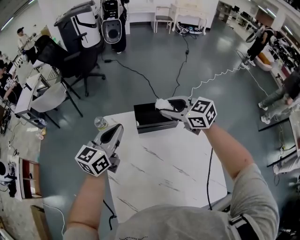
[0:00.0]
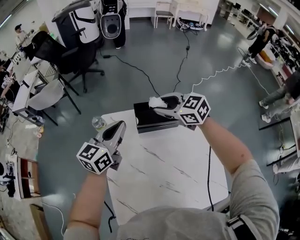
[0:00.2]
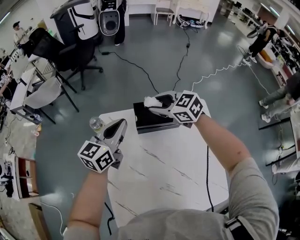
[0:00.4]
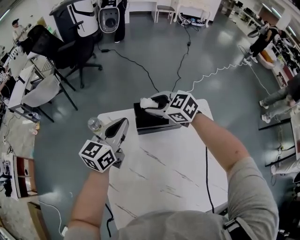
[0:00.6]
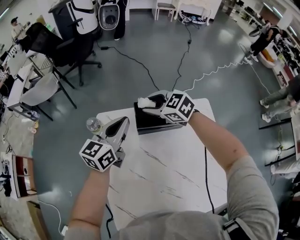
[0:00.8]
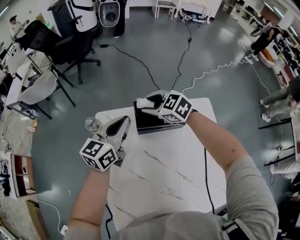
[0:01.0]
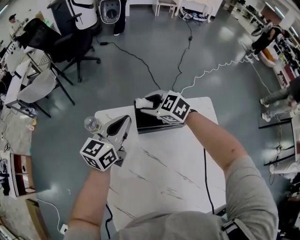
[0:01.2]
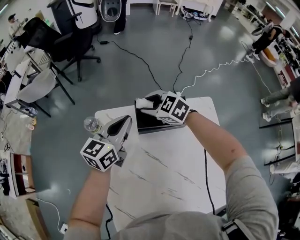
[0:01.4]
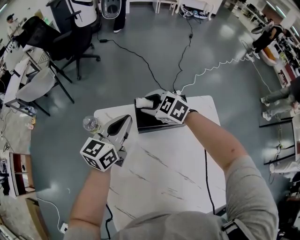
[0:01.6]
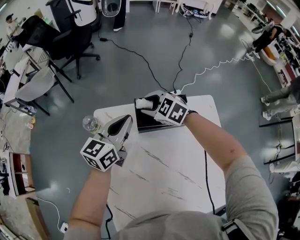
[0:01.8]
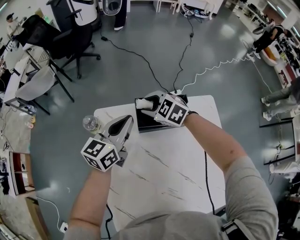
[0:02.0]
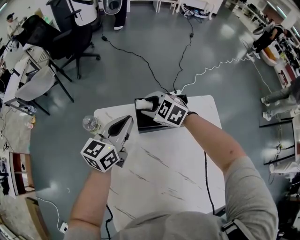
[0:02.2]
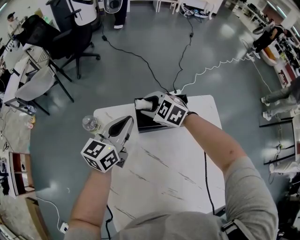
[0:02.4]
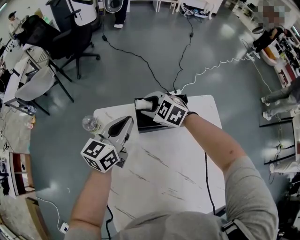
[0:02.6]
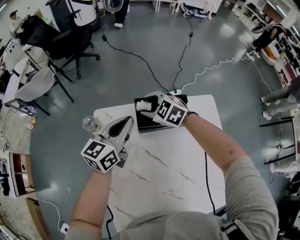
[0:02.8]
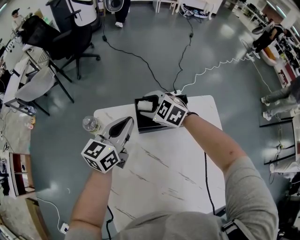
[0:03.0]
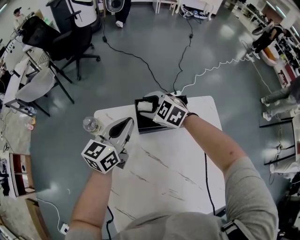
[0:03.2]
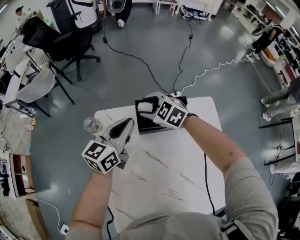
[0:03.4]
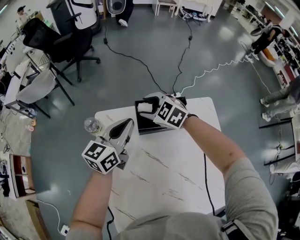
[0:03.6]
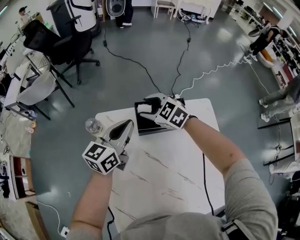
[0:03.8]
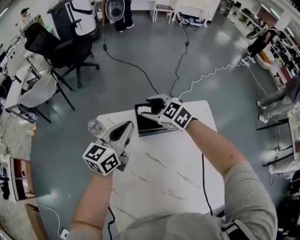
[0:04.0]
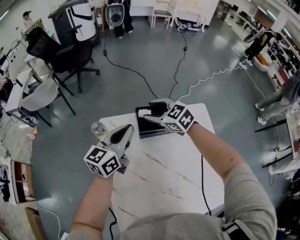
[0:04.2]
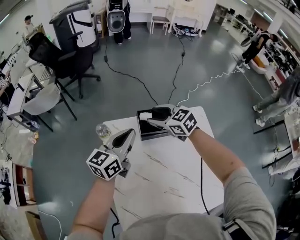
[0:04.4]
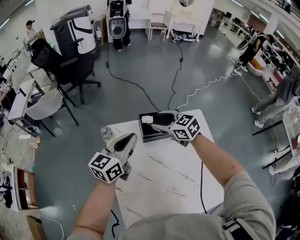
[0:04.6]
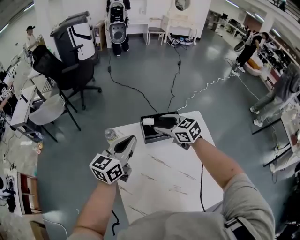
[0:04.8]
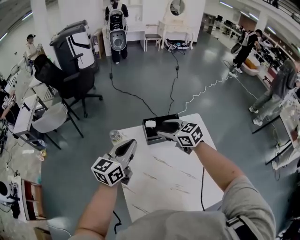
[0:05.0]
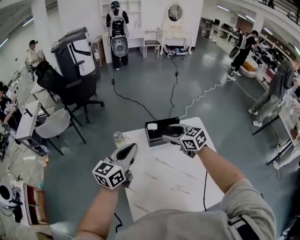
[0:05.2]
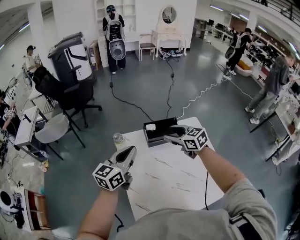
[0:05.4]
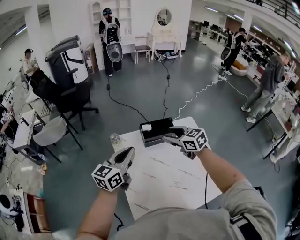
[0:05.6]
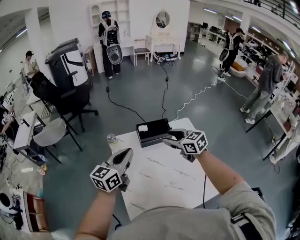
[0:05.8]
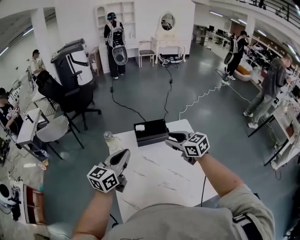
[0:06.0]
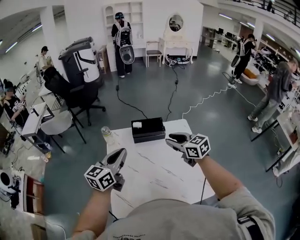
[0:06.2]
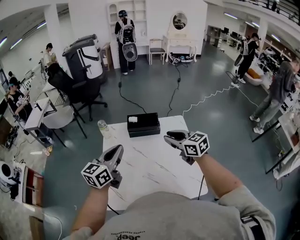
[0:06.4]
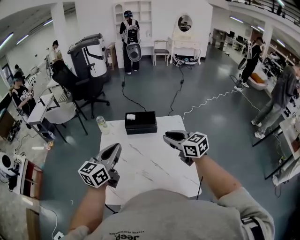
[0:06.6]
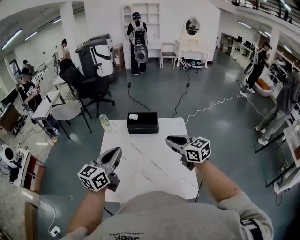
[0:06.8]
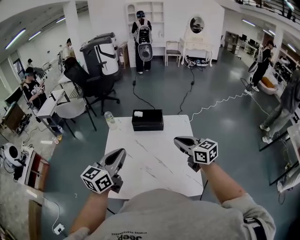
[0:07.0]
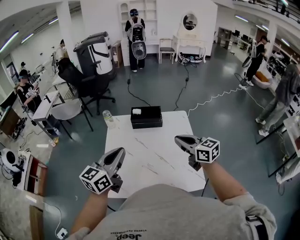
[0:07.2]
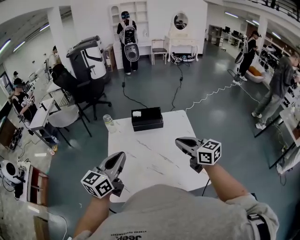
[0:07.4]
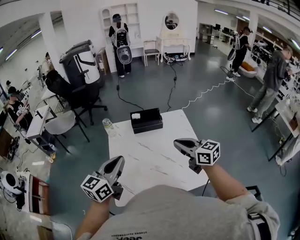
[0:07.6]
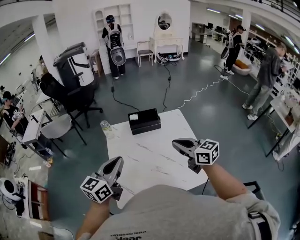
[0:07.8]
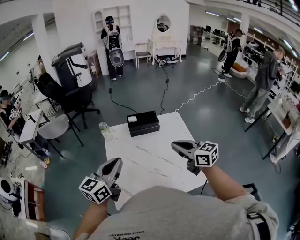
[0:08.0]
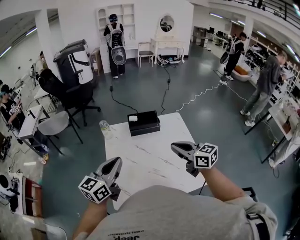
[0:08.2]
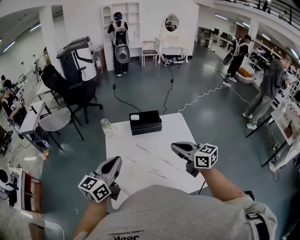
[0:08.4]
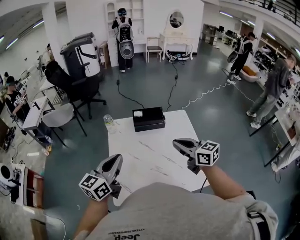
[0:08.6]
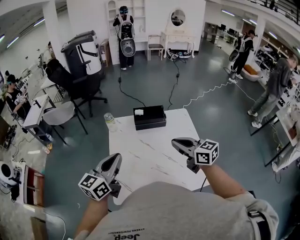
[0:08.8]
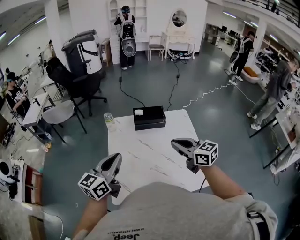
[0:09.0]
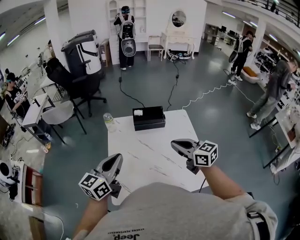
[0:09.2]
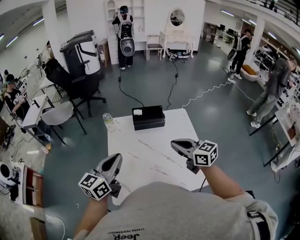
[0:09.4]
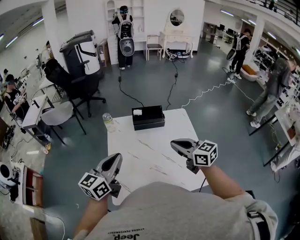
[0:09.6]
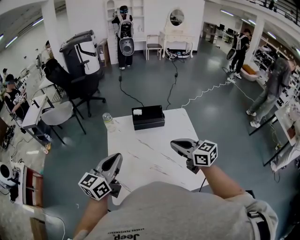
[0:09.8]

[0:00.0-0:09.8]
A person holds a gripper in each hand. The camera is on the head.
0:00.0 to 0:01.4: The right gripper shifts some 20 cm downward, forward and to the left, and swivels about 20 degrees; the left gripper goes about 10 cm downward and forward.
0:01.4 to 0:02.8: The grippers stay close to where they were, moving slightly.
0:02.8 to 0:04.2: The right gripper moves upward, roughly 10 cm. Meanwhile the left gripper ends up some 5 cm from where it was.
0:04.2 to 0:05.6: The left gripper shifts approximately 15 cm backward, upward and to the left; the right gripper moves backward and upward, roughly 15 cm, and rotates some 20 degrees.
0:05.6 to 0:07.0: The grippers both shift backward and to the right by some 25 cm. The right gripper closes its fingers.
0:07.0 to 0:08.4: The two grippers go about 10 cm to the left.
0:08.4 to 0:09.8: There are only small adjustments of the grippers.

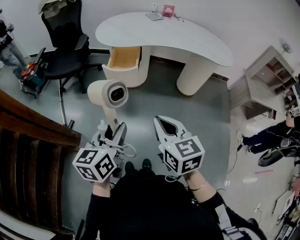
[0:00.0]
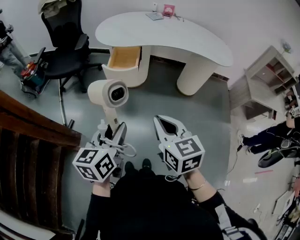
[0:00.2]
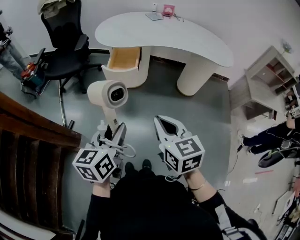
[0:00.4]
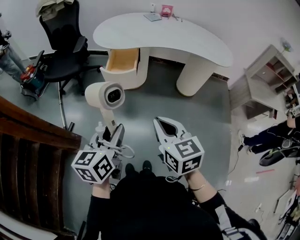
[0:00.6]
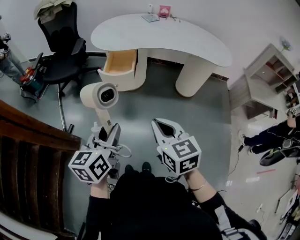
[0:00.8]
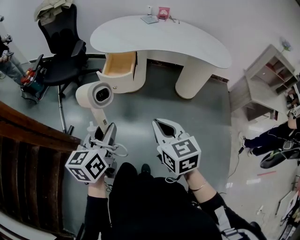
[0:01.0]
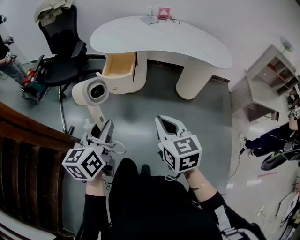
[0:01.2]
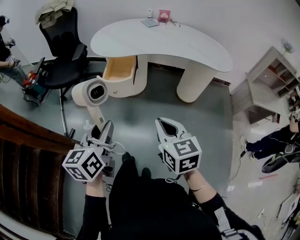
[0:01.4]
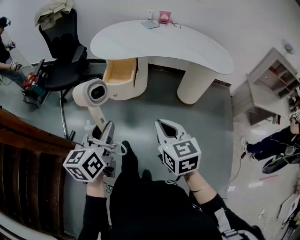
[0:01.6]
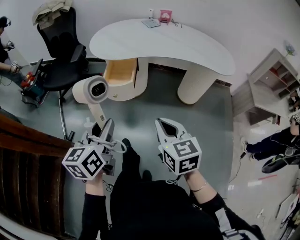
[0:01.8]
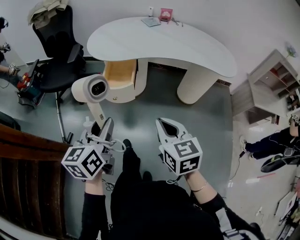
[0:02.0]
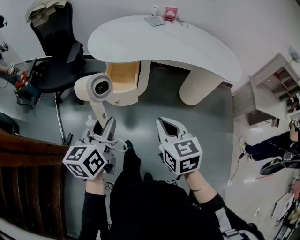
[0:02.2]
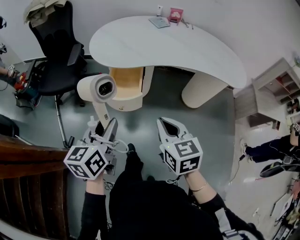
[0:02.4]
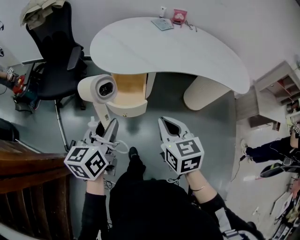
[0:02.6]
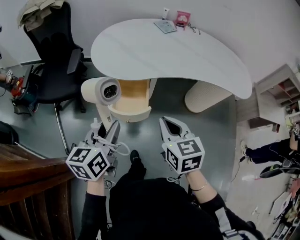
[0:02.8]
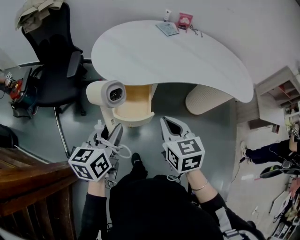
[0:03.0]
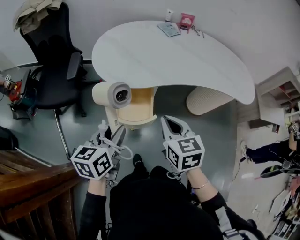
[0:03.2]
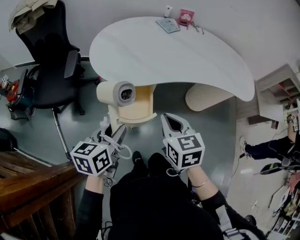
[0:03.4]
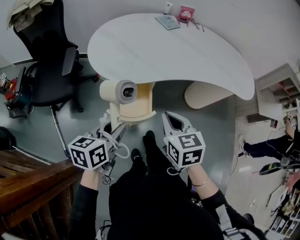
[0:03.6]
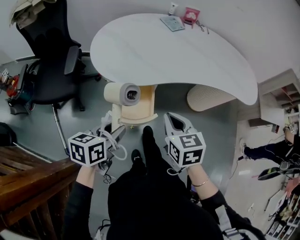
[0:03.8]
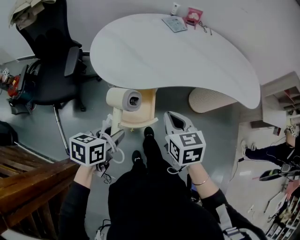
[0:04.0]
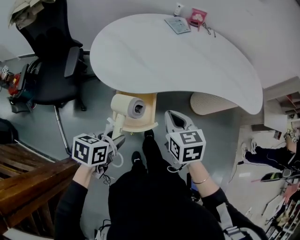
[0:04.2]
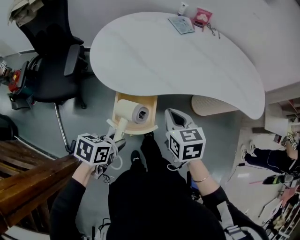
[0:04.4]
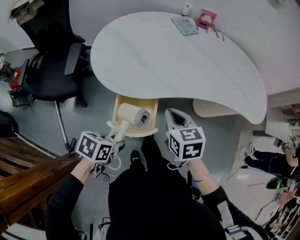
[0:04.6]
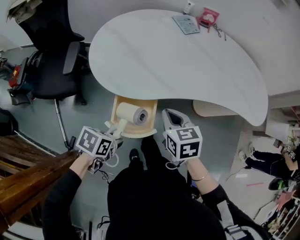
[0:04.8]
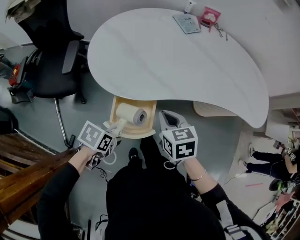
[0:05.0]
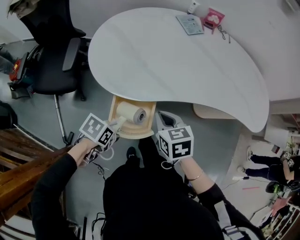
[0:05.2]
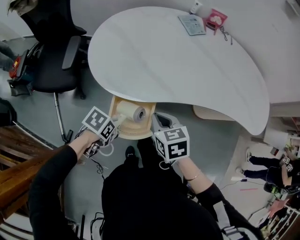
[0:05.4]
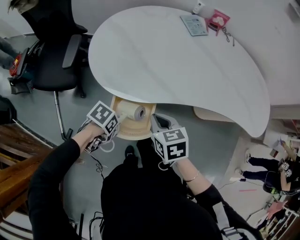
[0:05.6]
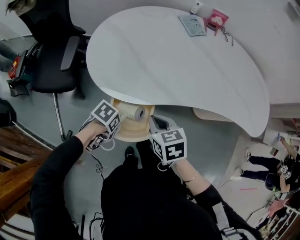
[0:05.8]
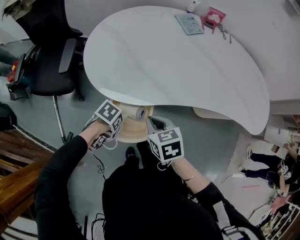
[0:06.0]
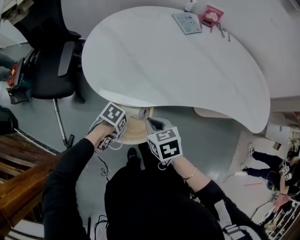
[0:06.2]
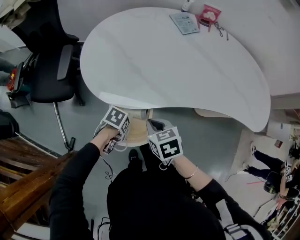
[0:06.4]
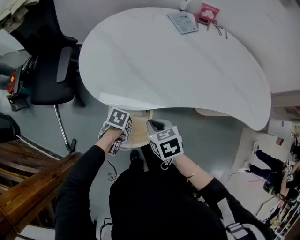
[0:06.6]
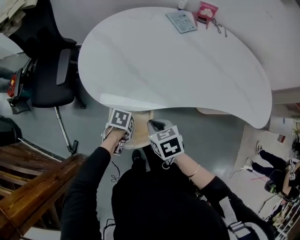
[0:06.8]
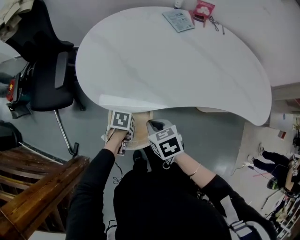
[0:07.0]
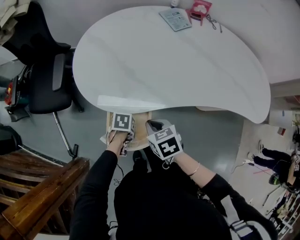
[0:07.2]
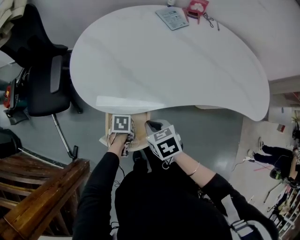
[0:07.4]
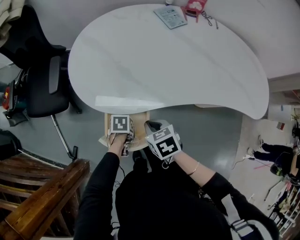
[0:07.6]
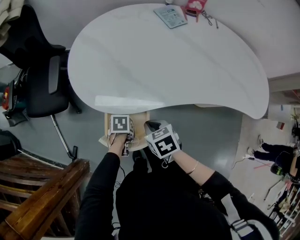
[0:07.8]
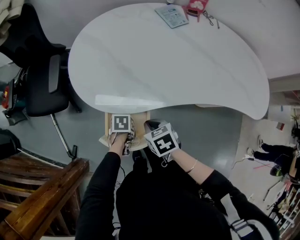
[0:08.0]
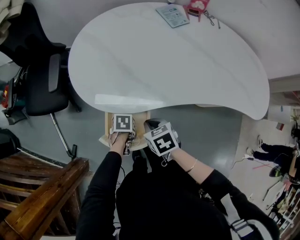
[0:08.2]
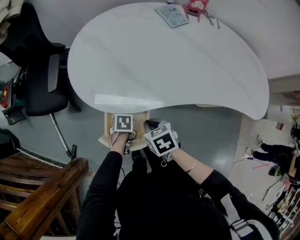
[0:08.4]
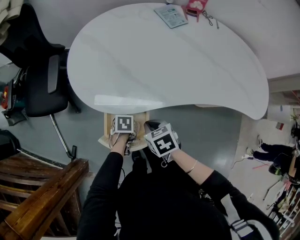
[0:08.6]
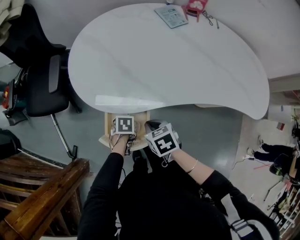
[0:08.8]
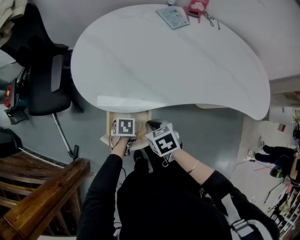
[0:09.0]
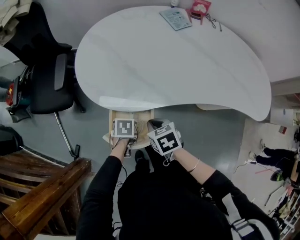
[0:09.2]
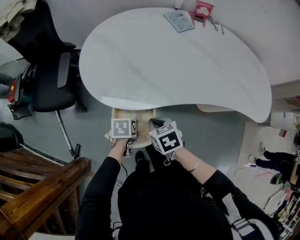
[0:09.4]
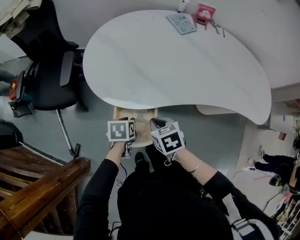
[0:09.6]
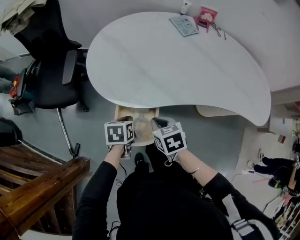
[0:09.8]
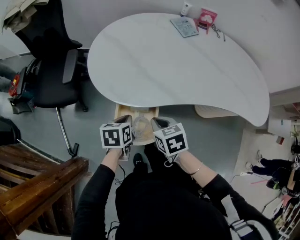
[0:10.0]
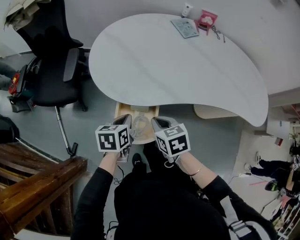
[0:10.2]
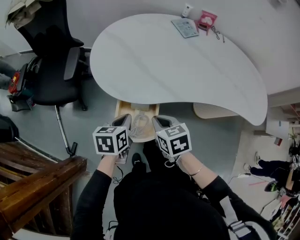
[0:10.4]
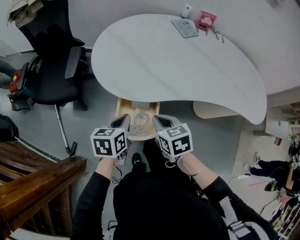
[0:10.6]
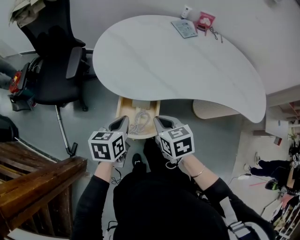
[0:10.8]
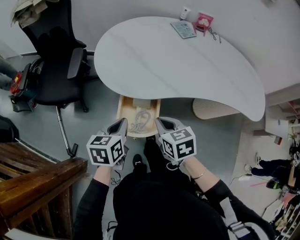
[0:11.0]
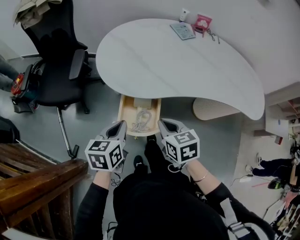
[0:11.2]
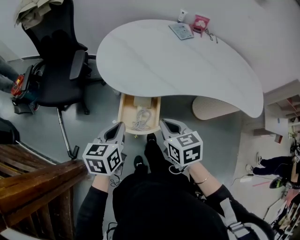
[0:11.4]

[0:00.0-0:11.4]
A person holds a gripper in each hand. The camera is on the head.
0:00.0 to 0:01.4: The right gripper moves to the right, approximately 5 cm. The left gripper heads forward, covering roughly 5 cm.
0:01.4 to 0:02.8: The two grippers go roughly 25 cm forward.
0:02.8 to 0:04.2: The right gripper moves forward, some 15 cm. The left gripper moves downward and forward, approximately 15 cm, and turns by roughly 40 degrees.
0:04.2 to 0:05.6: The left gripper shifts roughly 10 cm downward, and swivels about 40 degrees; the right gripper moves downward, some 5 cm.
0:05.6 to 0:07.2: The left gripper changes place by about 10 cm, and changes its angle by approximately 20 degrees, while the right gripper travels downward by some 5 cm.
0:07.2 to 0:08.6: The grippers make only small movements.
0:08.6 to 0:10.0: The left gripper moves upward, roughly 15 cm, angles its fingers upward, by roughly 30 degrees, and closes its fingers, while the right gripper heads upward, covering roughly 5 cm.
0:10.0 to 0:11.4: The right gripper shifts approximately 10 cm upward and backward. The left gripper goes some 15 cm upward, backward and to the left, and swivels some 20 degrees.

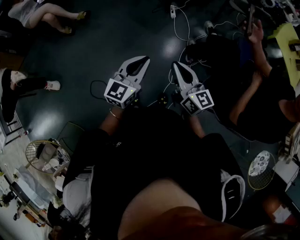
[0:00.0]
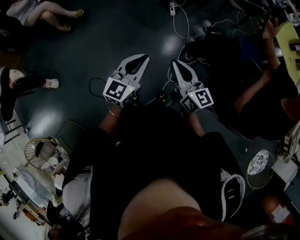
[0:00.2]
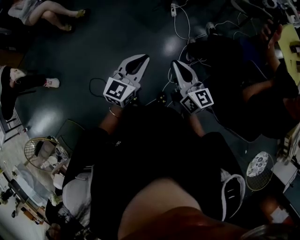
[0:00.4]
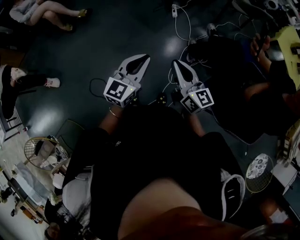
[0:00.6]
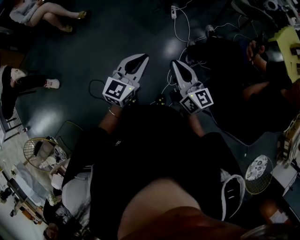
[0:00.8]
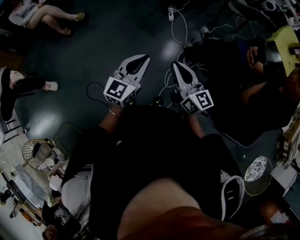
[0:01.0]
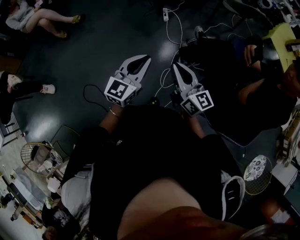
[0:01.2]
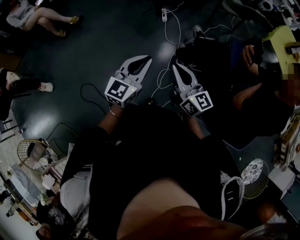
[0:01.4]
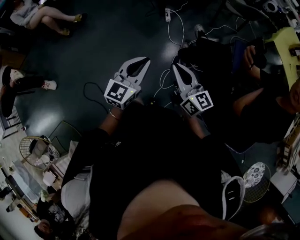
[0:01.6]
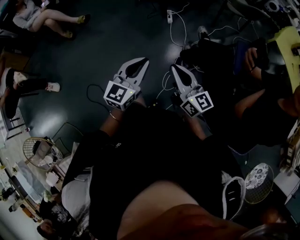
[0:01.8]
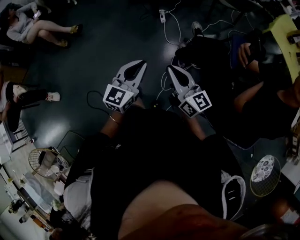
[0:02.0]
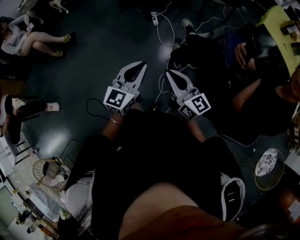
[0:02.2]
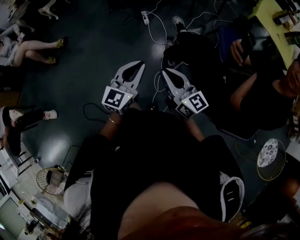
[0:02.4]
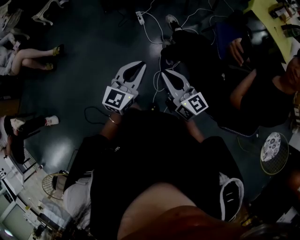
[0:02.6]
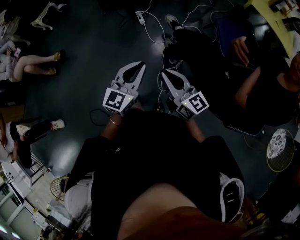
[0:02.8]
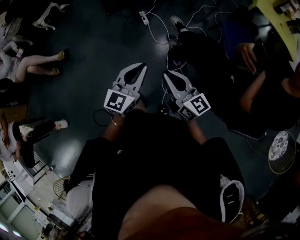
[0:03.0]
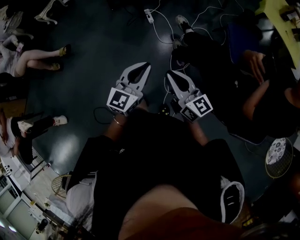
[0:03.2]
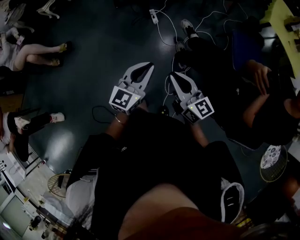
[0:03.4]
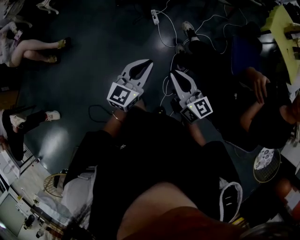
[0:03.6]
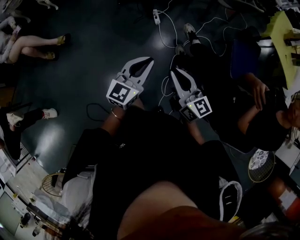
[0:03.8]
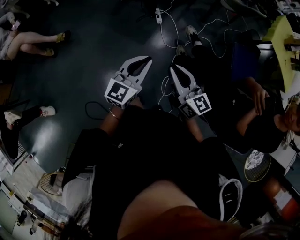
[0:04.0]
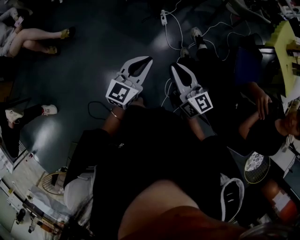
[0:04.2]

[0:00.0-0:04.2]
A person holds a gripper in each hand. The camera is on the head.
0:00.0 to 0:01.4: The grippers both shift to the right by roughly 10 cm.
0:01.4 to 0:02.8: The left gripper moves forward and to the right, some 10 cm, while the right gripper shifts by about 5 cm.
0:02.8 to 0:04.2: The grippers both shift to the left and forward by some 25 cm.
